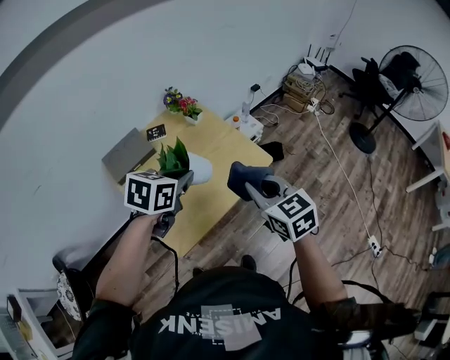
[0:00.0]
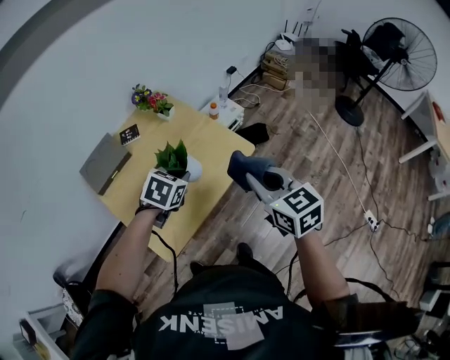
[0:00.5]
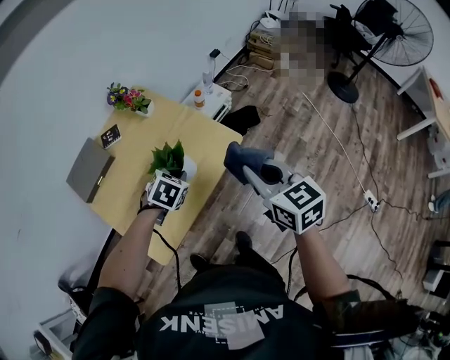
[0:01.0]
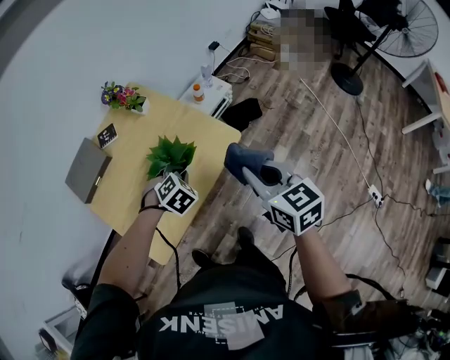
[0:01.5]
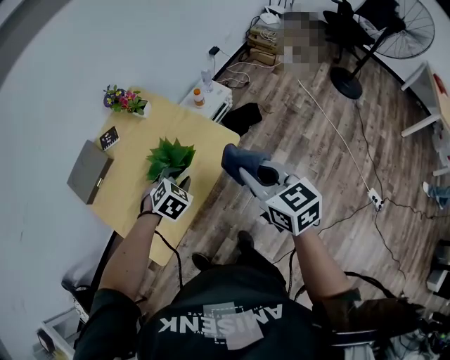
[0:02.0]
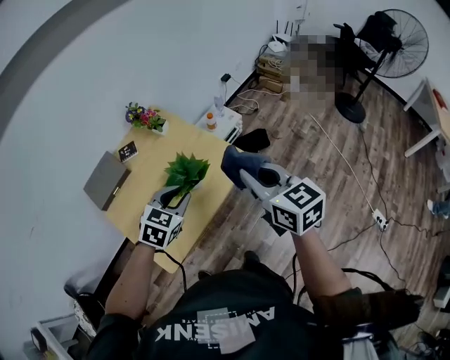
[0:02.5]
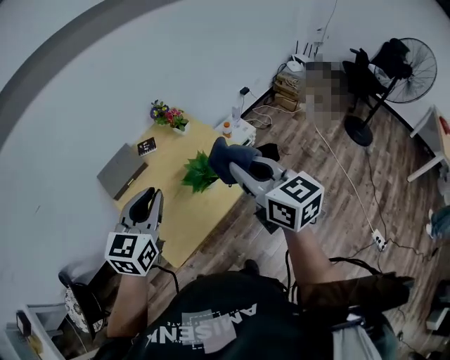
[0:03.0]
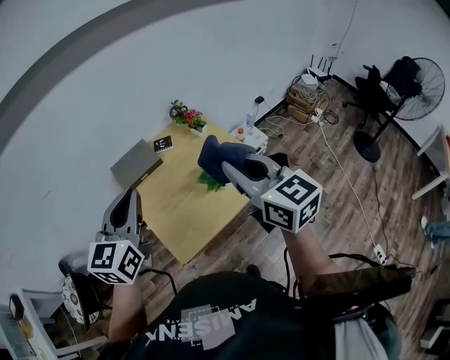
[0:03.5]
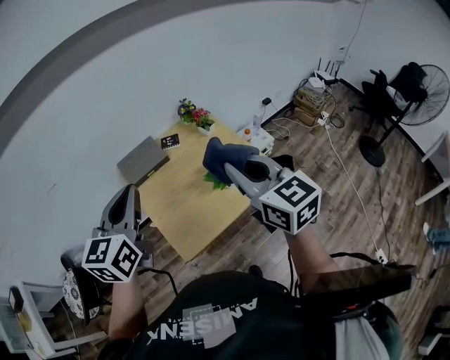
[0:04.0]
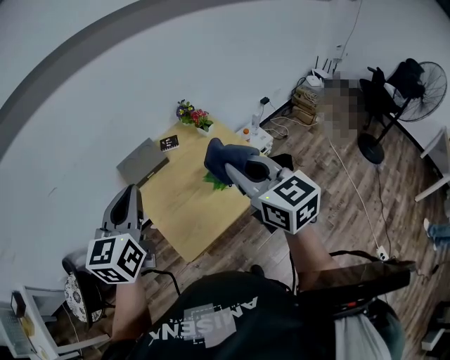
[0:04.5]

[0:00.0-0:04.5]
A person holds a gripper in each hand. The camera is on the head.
0:00.0 to 0:02.0: The left gripper shifts approximately 25 cm downward and to the right, swivels roughly 50 degrees, and opens, while the right gripper goes some 15 cm to the right and forward.
0:02.0 to 0:04.5: The left gripper shifts roughly 40 cm upward and to the left, tips its fingers upward by about 50 degrees, and closes, while the right gripper moves upward and to the left, approximately 25 cm, and swivels some 20 degrees.

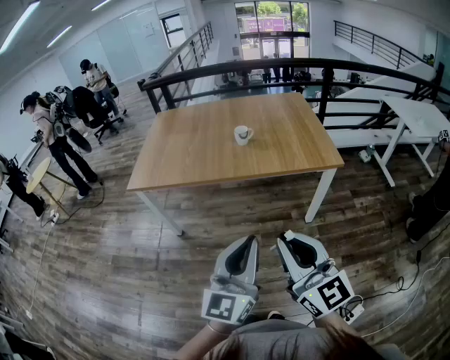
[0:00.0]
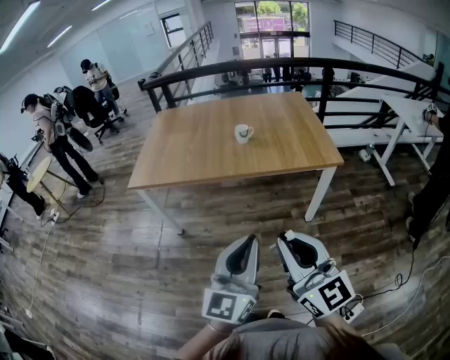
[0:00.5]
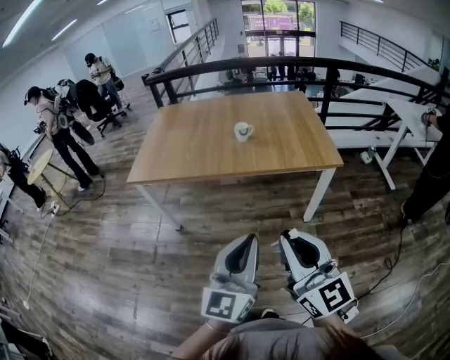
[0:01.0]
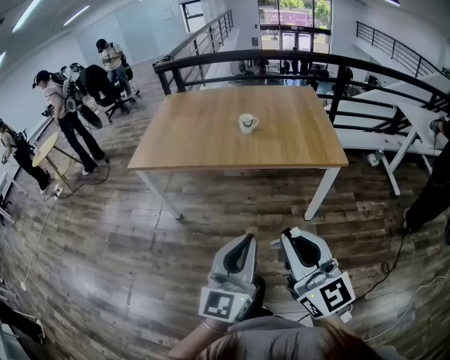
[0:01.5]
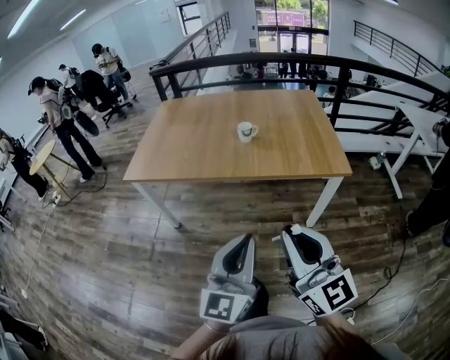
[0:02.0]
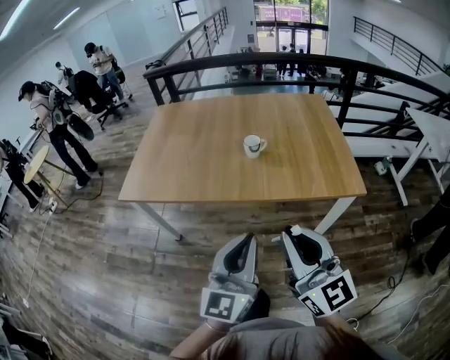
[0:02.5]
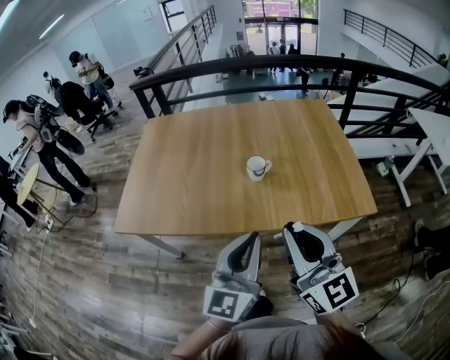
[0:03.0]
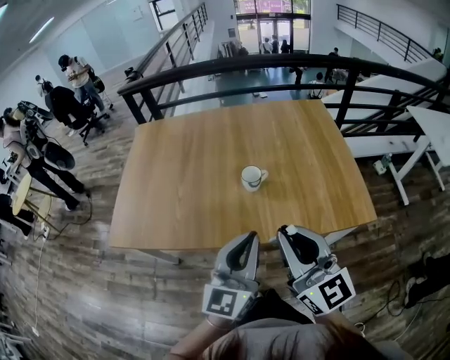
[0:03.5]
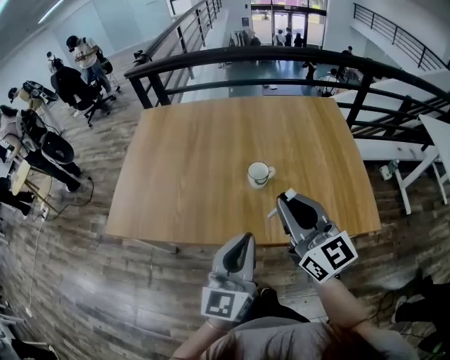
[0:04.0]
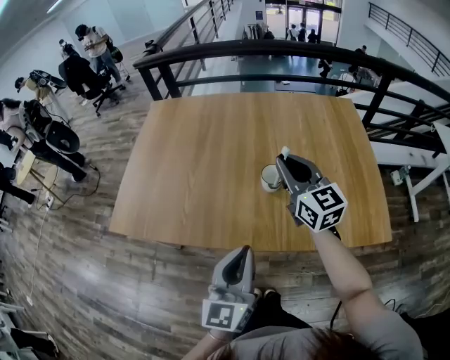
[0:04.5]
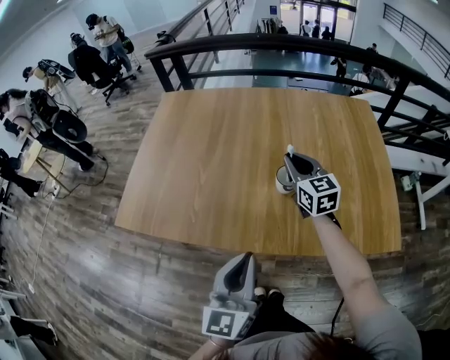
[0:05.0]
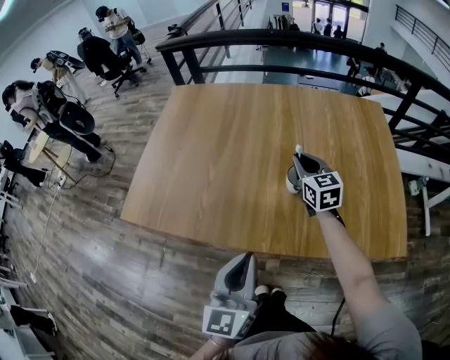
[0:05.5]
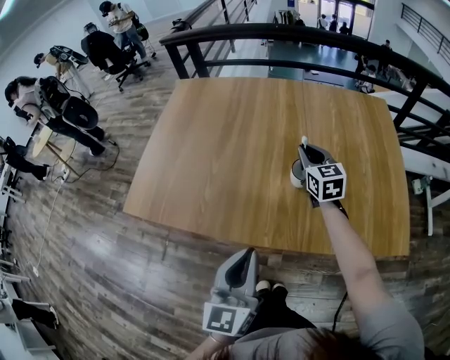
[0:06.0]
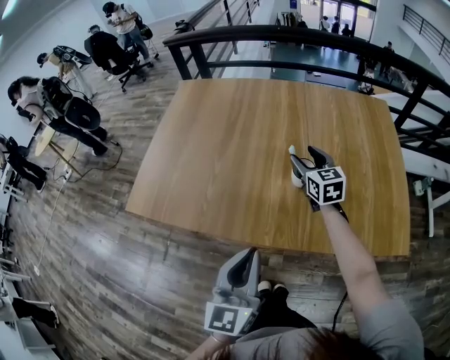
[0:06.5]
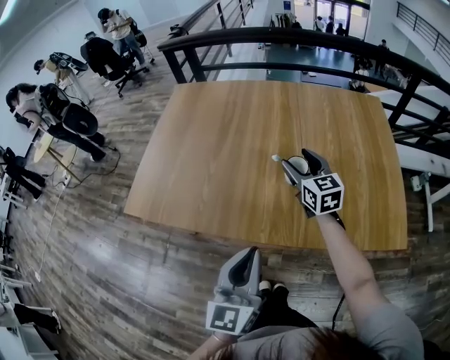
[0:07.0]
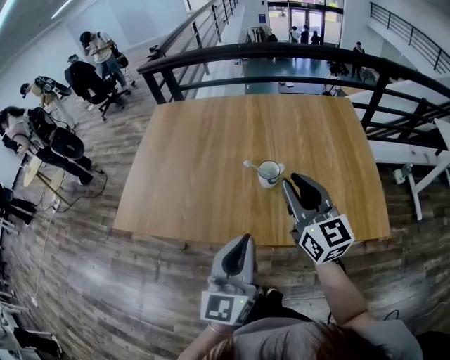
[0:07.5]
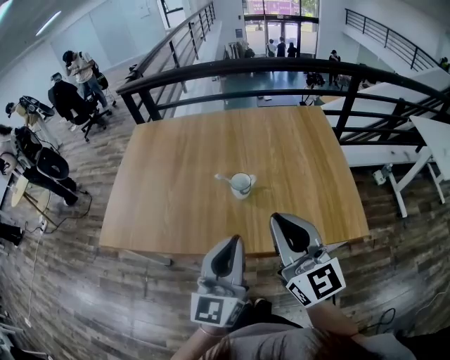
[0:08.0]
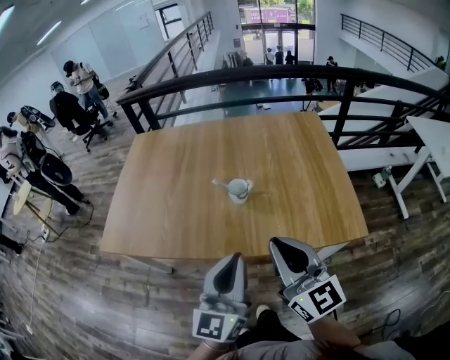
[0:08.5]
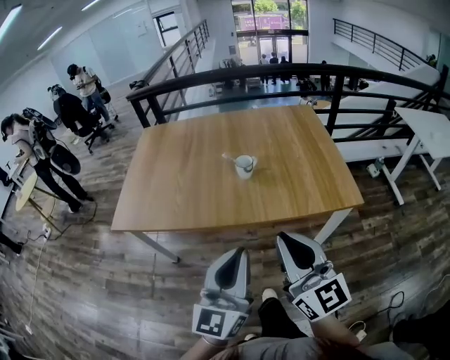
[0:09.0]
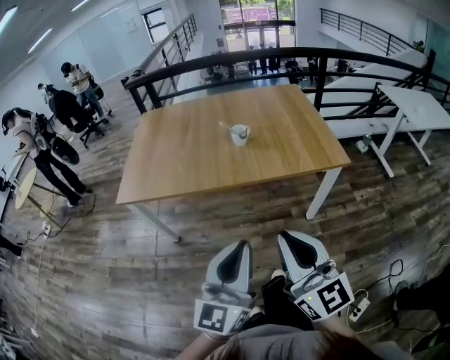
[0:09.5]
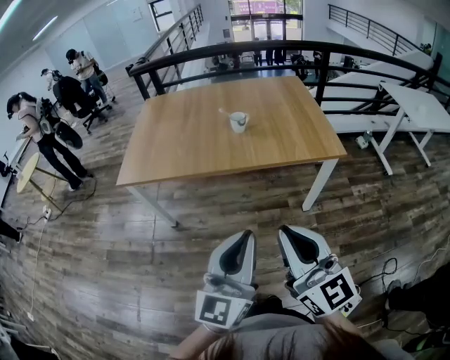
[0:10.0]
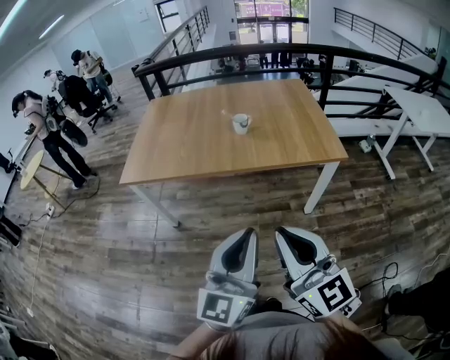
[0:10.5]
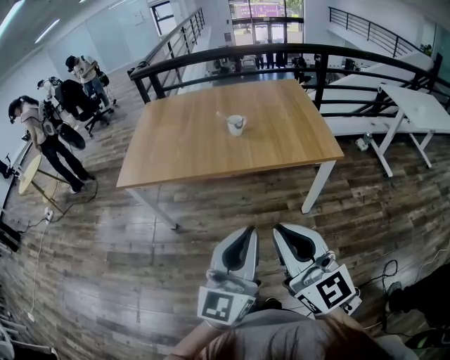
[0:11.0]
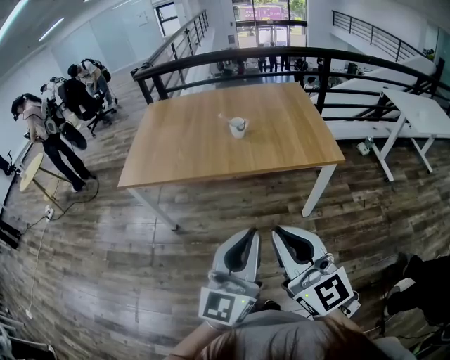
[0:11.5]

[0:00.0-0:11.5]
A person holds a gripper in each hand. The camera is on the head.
0:00.0 to 0:02.0: The right gripper shifts roughly 5 cm forward; the left gripper moves roughly 5 cm.
0:02.0 to 0:04.0: The grippers both shift forward by some 35 cm.
0:04.0 to 0:06.0: The right gripper heads forward and downward, covering roughly 30 cm, and swivels roughly 30 degrees. Meanwhile the left gripper moves to the left, some 5 cm.
0:06.0 to 0:07.5: The right gripper shifts roughly 25 cm backward and upward, changes its angle by roughly 20 degrees, and opens and closes again; the left gripper is displaced to the right by roughly 5 cm.
0:07.5 to 0:09.5: The grippers both shift backward by roughly 35 cm.
0:09.5 to 0:11.5: The left gripper moves to the right, roughly 5 cm.

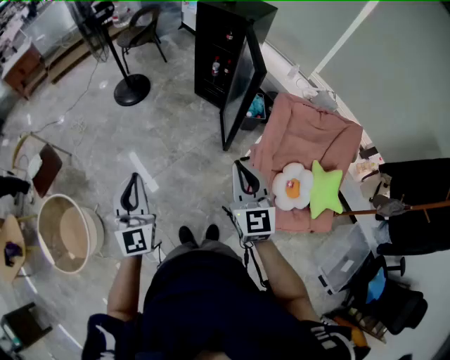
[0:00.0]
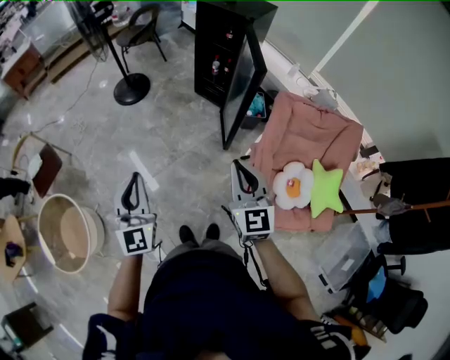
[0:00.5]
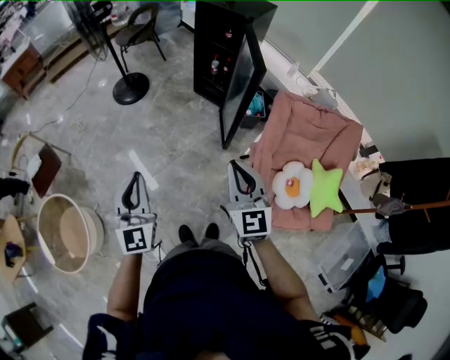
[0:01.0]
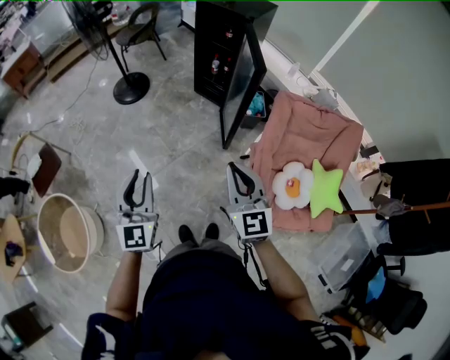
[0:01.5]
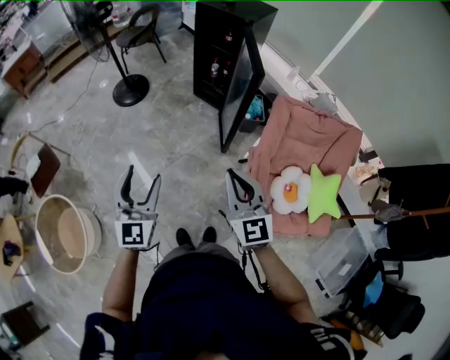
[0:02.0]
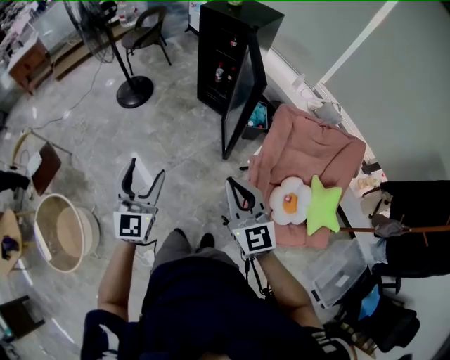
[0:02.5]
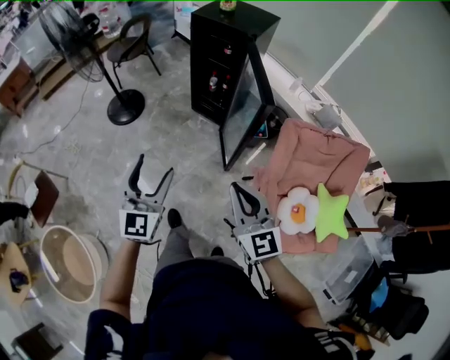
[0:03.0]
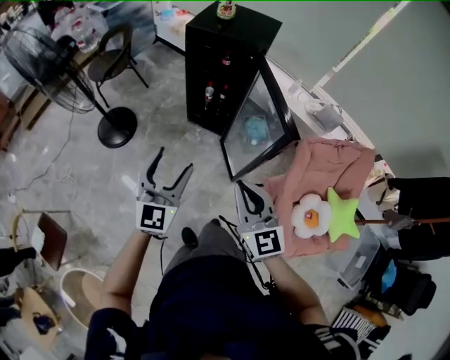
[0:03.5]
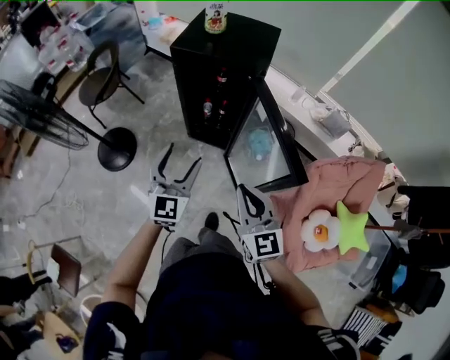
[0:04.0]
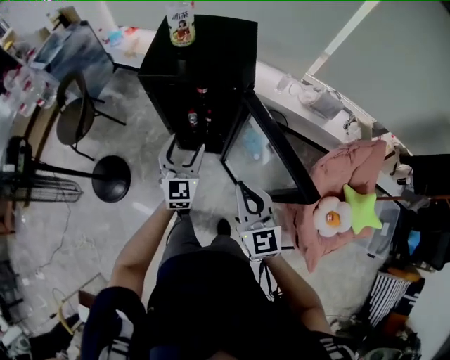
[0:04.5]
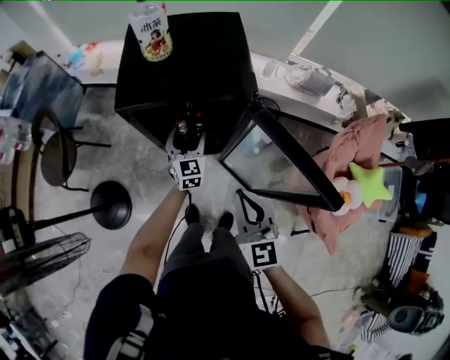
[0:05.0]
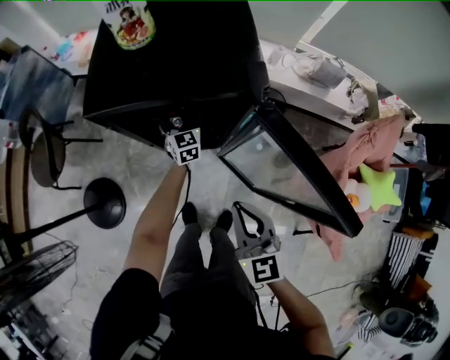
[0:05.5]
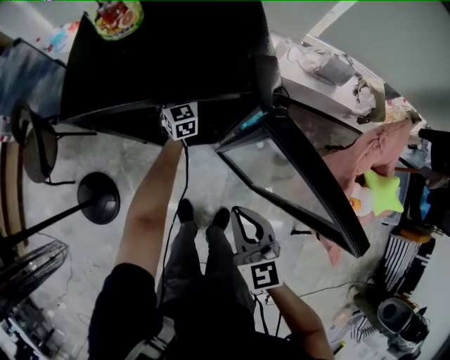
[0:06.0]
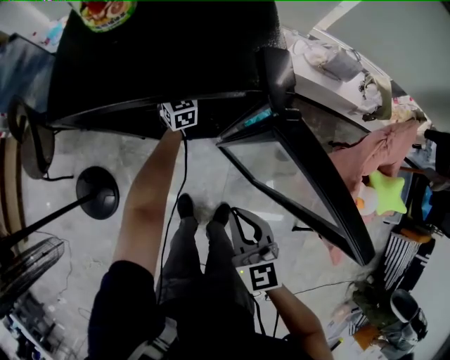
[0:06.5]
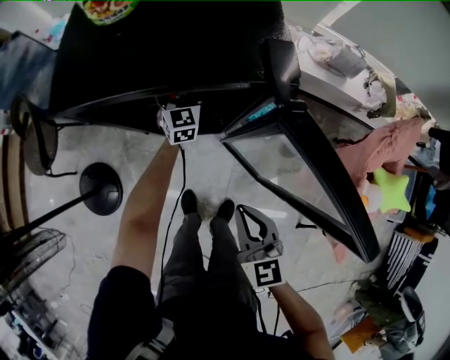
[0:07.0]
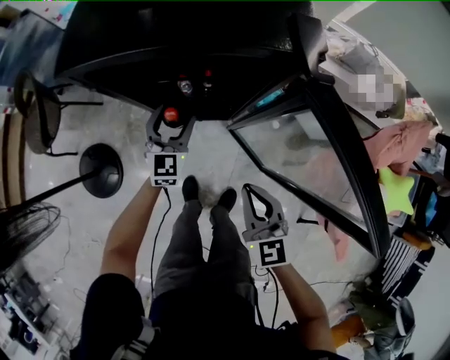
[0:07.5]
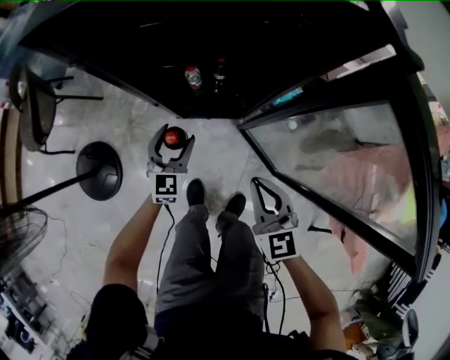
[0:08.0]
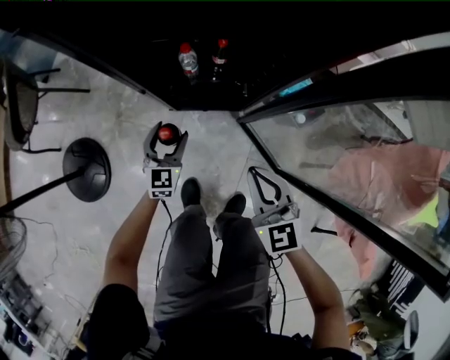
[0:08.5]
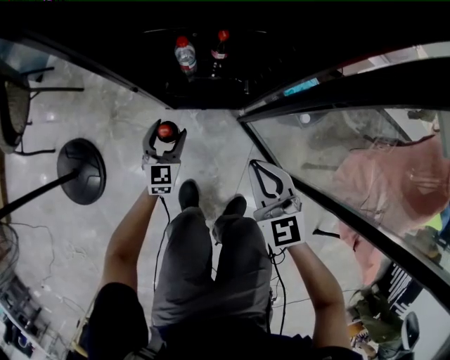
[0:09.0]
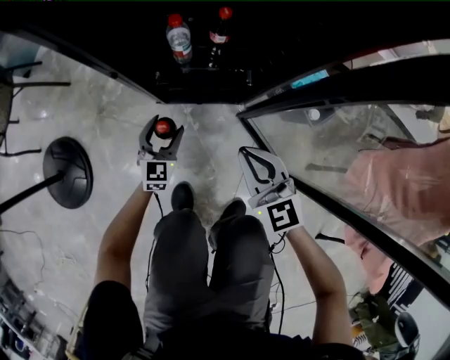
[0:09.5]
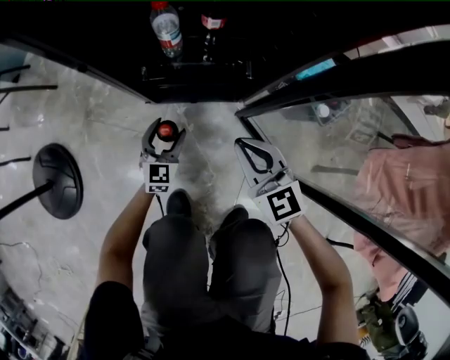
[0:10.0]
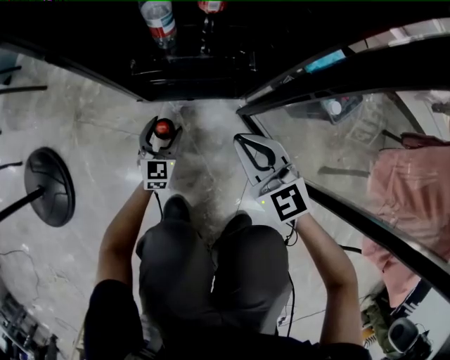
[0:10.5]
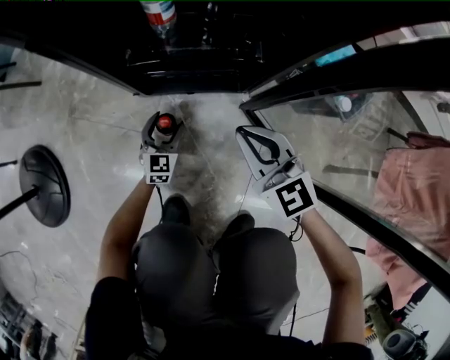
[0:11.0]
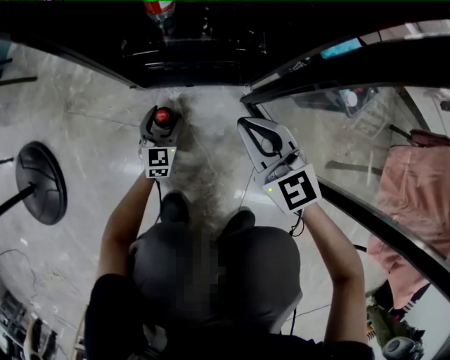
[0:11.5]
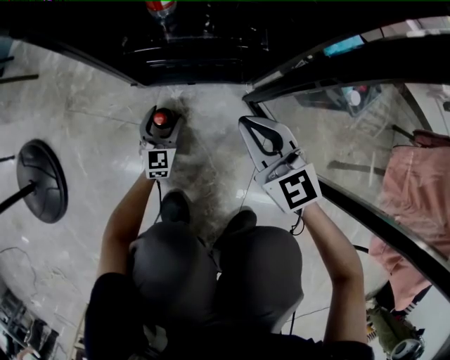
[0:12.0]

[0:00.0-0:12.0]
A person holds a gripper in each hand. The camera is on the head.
0:00.0 to 0:02.0: The left gripper changes place by about 5 cm, and opens.
0:02.0 to 0:04.0: Both grippers are carried forward, roughly 50 cm. The left gripper swivels some 30 degrees.
0:04.0 to 0:06.0: The left gripper heads forward and downward, covering approximately 70 cm, while the right gripper travels forward and downward by roughly 30 cm, and changes its angle by some 30 degrees.
0:06.0 to 0:08.0: The right gripper is displaced downward by roughly 20 cm. Meanwhile the left gripper shifts about 30 cm backward, downward and to the left.
0:08.0 to 0:10.0: The two grippers go approximately 40 cm downward.
0:10.0 to 0:12.0: The left gripper moves downward, about 15 cm, while the right gripper is displaced downward by roughly 10 cm.
